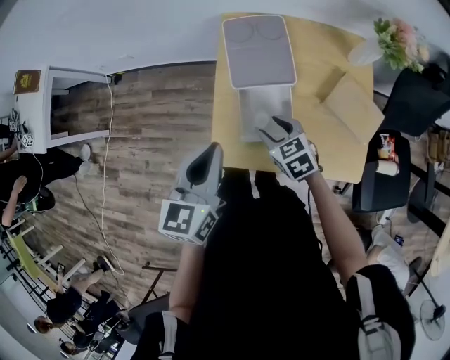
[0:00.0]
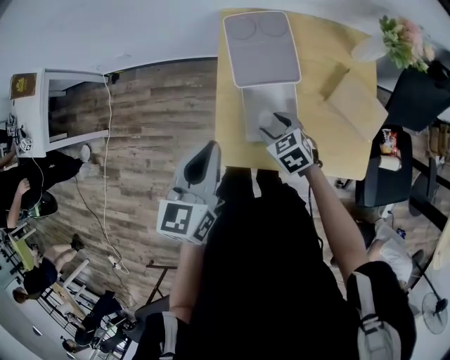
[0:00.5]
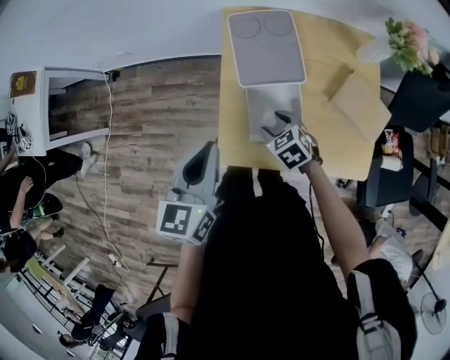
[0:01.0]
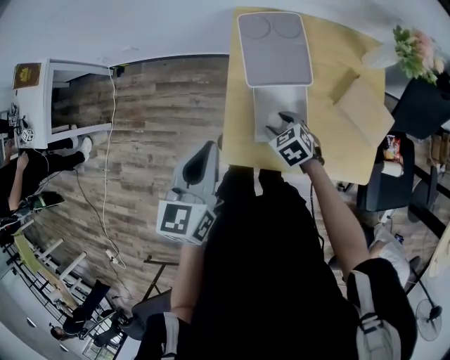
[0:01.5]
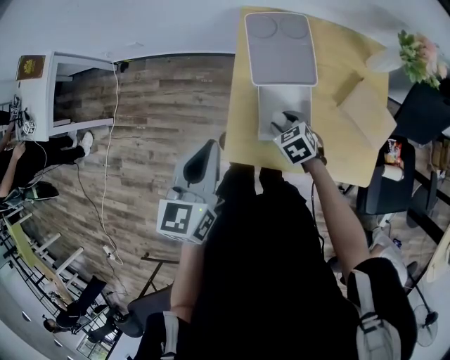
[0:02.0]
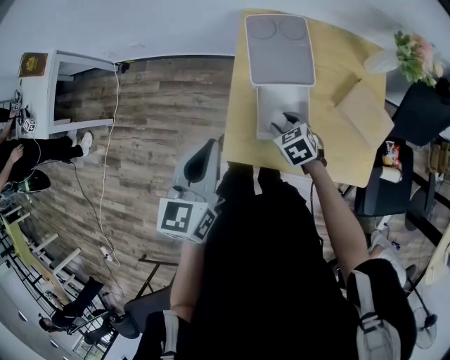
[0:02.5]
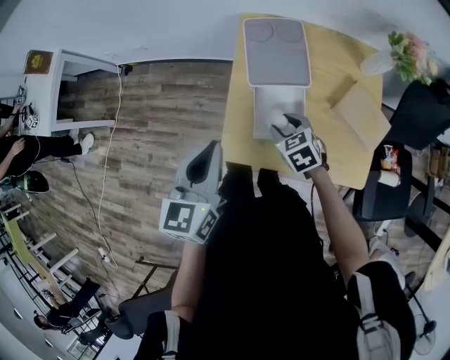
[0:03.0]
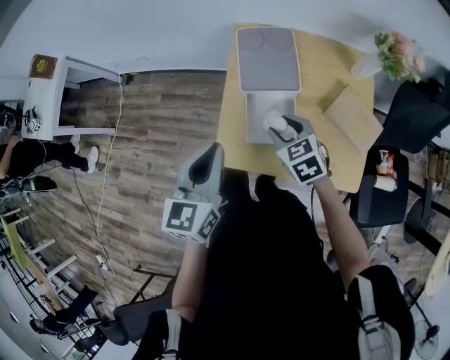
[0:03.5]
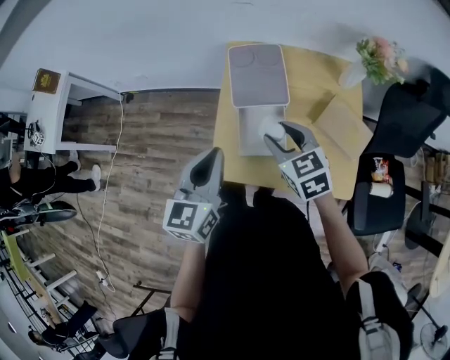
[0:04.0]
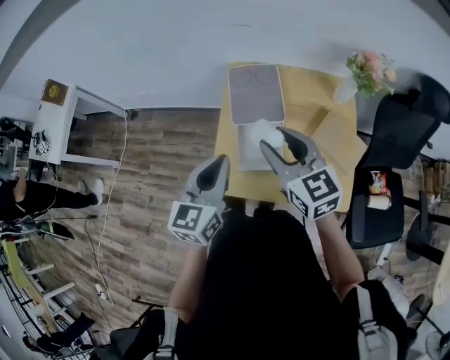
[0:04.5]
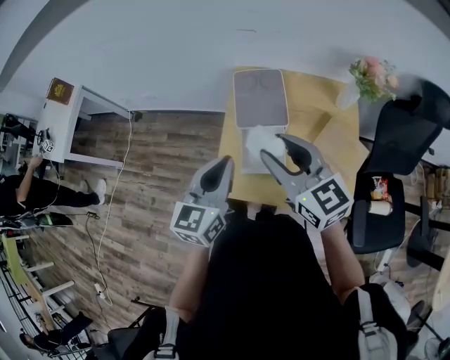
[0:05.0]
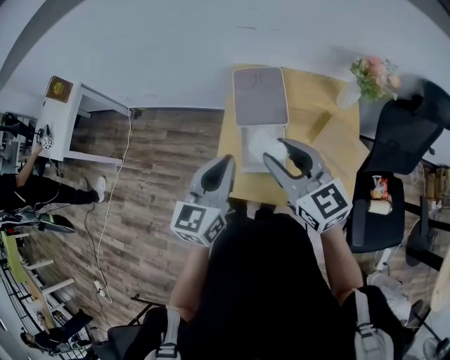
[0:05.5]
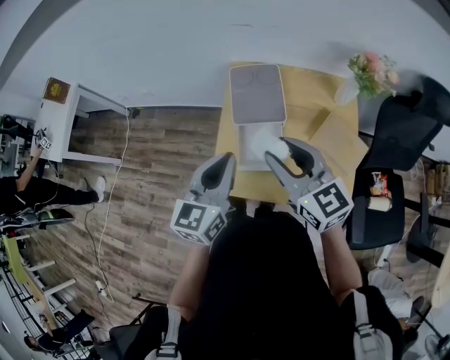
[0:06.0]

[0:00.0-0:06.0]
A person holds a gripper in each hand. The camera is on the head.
0:00.0 to 0:02.0: The right gripper travels downward by about 5 cm; the left gripper is displaced to the left by about 5 cm.
0:02.0 to 0:04.0: The right gripper moves upward, about 20 cm, and rotates about 30 degrees; the left gripper goes approximately 5 cm to the right.
0:04.0 to 0:06.0: The left gripper changes place by some 5 cm; the right gripper heads upward, covering some 10 cm, and changes its angle by approximately 30 degrees.

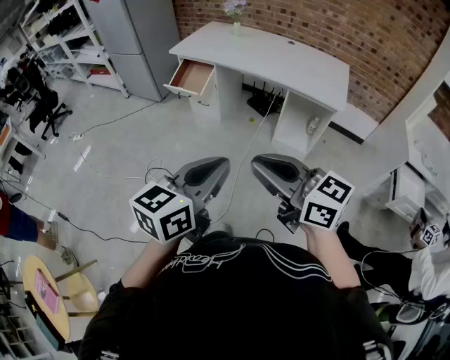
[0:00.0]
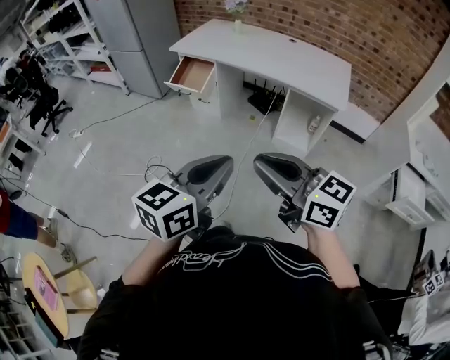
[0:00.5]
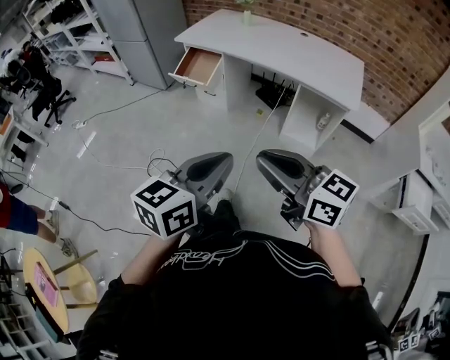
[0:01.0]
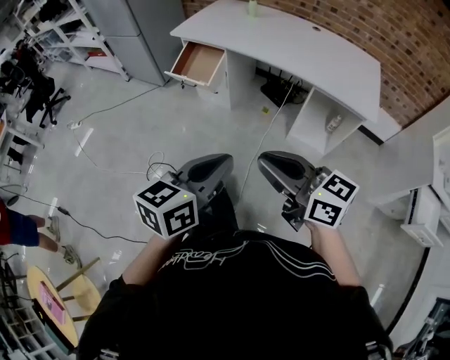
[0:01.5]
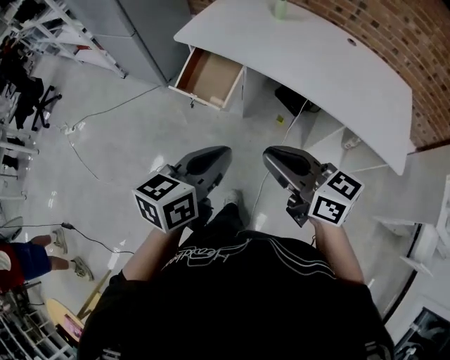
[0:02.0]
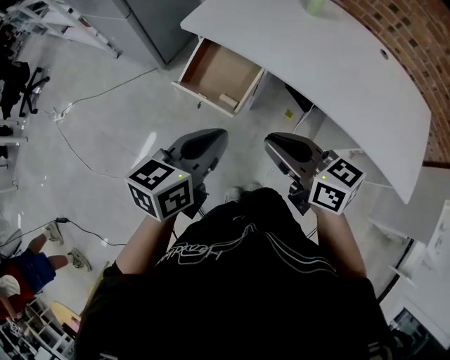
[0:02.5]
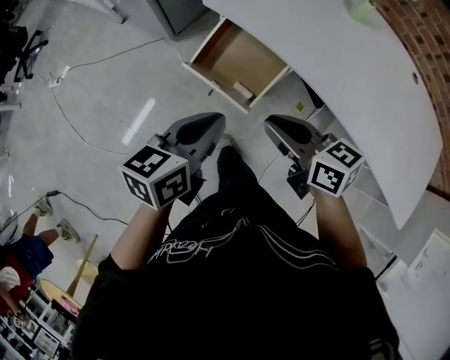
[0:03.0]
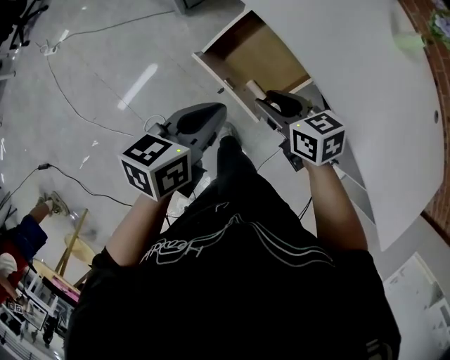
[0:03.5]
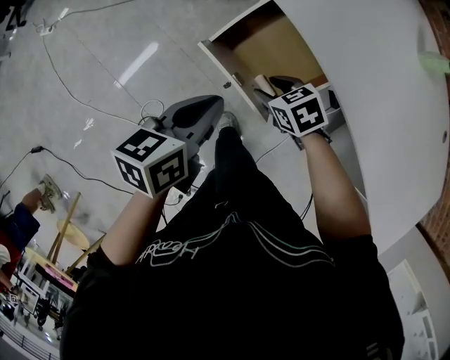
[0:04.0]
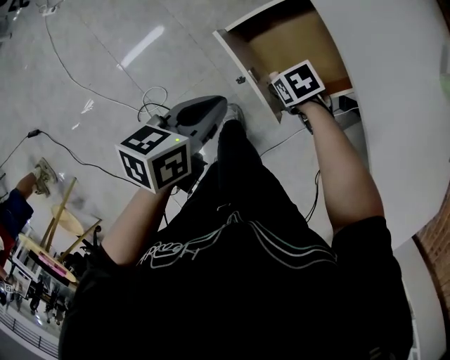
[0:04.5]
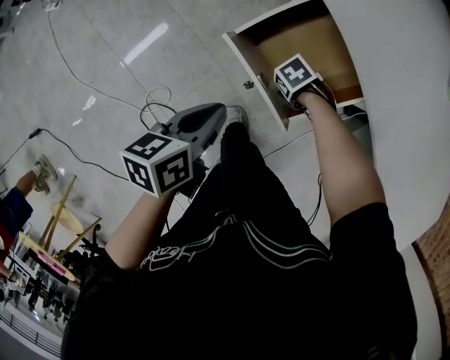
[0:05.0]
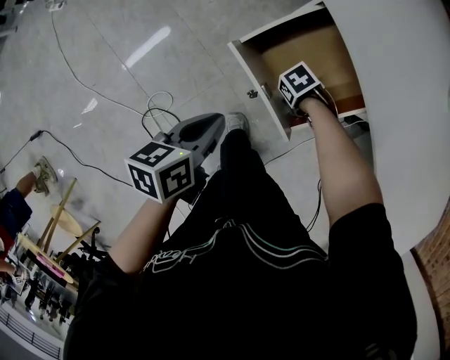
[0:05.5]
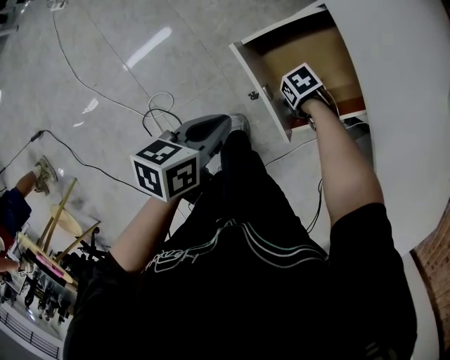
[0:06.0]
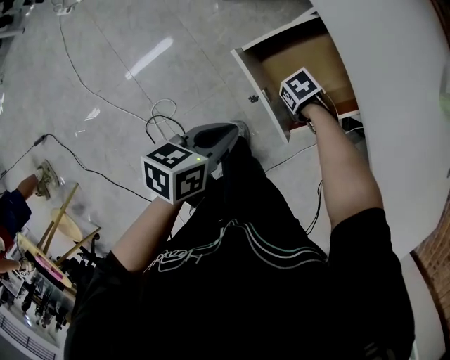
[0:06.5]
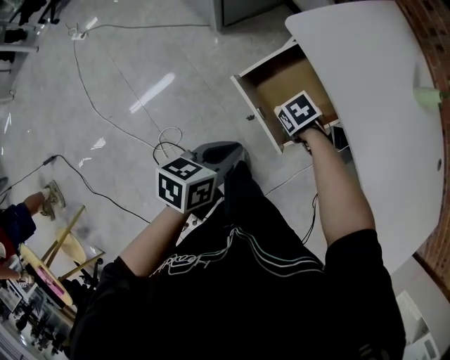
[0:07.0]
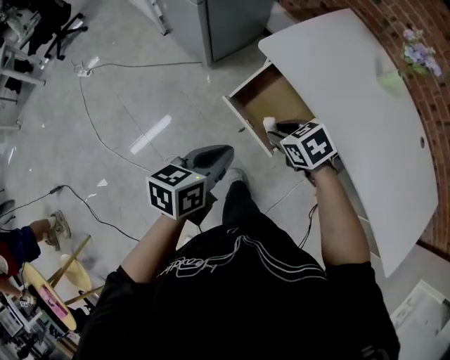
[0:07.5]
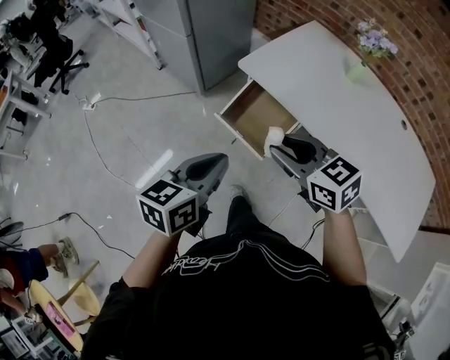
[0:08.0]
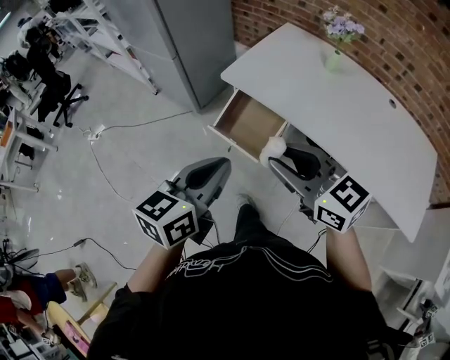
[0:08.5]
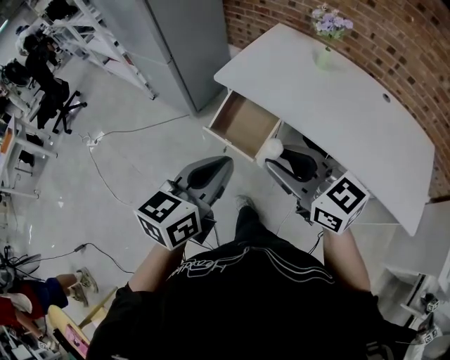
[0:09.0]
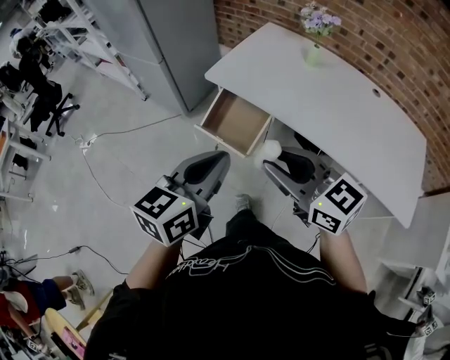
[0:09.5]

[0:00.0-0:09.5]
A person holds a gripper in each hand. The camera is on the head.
0:00.0 to 0:02.0: The pair of grippers is taken forward, some 50 cm.
0:02.0 to 0:04.0: The two grippers travel together, forward, about 50 cm. The right gripper is displaced downward by some 40 cm, tips its fingers downward by roughly 50 degrees, and opens up. Meanwhile the left gripper shifts about 25 cm downward, and changes its angle by about 30 degrees.
0:04.0 to 0:05.5: The right gripper moves downward, approximately 20 cm, and rotates approximately 40 degrees. The left gripper moves downward, approximately 10 cm.
0:05.5 to 0:07.5: The right gripper moves upward, roughly 35 cm, and rotates roughly 40 degrees. Meanwhile the left gripper is displaced upward by some 20 cm, and changes its angle by approximately 20 degrees.
0:07.5 to 0:09.5: The left gripper moves upward, backward and to the right, some 30 cm, and turns by some 30 degrees. Meanwhile the right gripper heads upward and backward, covering approximately 35 cm, and tips its fingers upward by some 50 degrees.

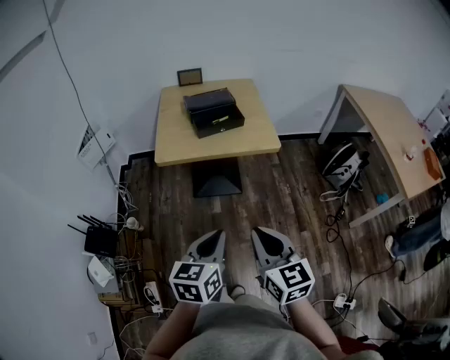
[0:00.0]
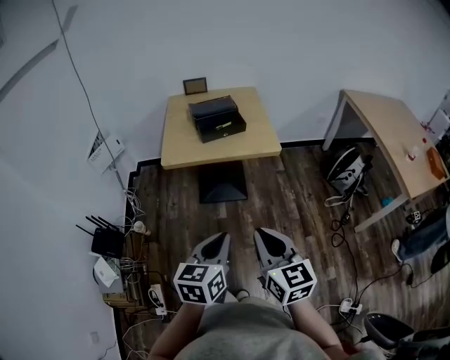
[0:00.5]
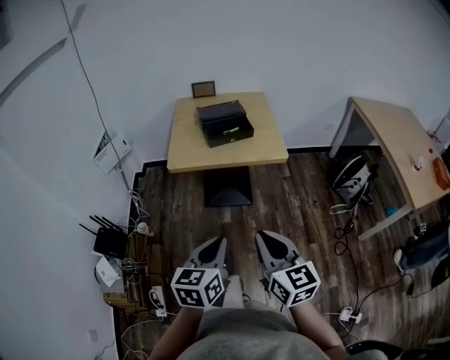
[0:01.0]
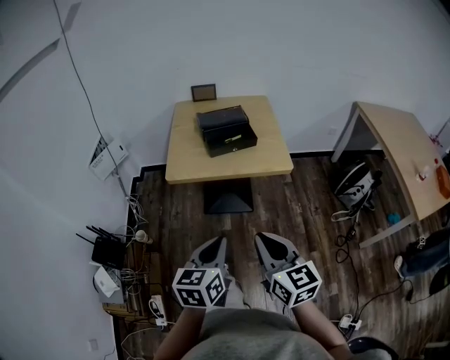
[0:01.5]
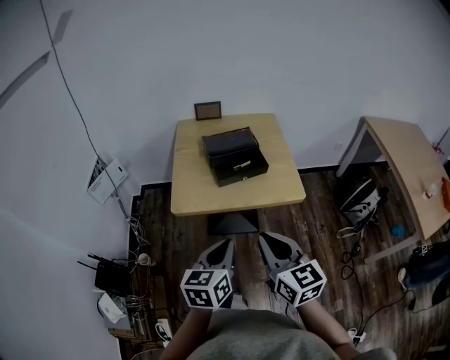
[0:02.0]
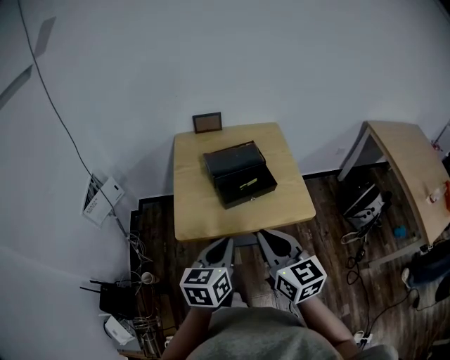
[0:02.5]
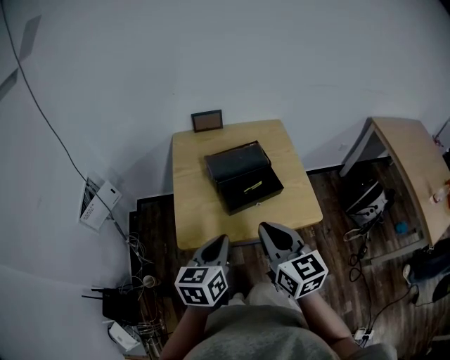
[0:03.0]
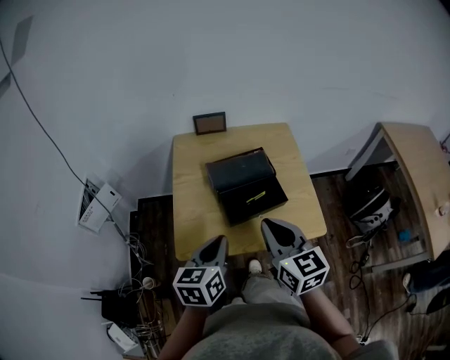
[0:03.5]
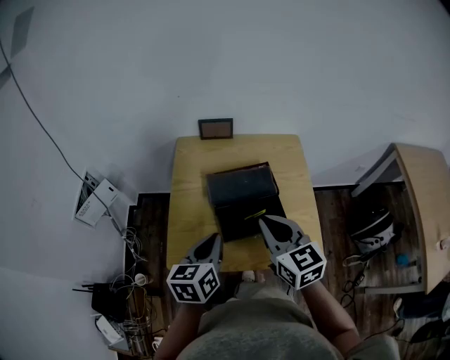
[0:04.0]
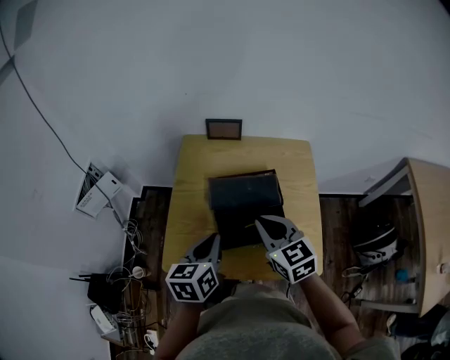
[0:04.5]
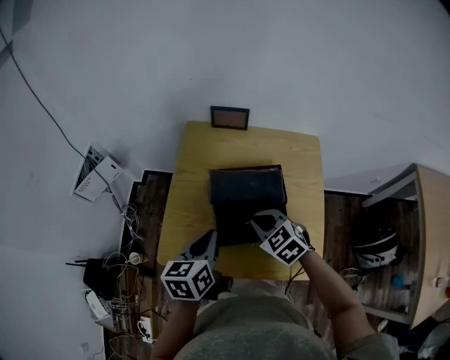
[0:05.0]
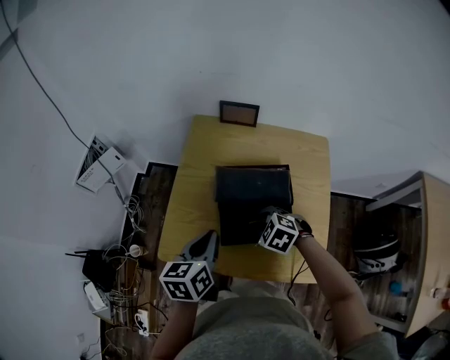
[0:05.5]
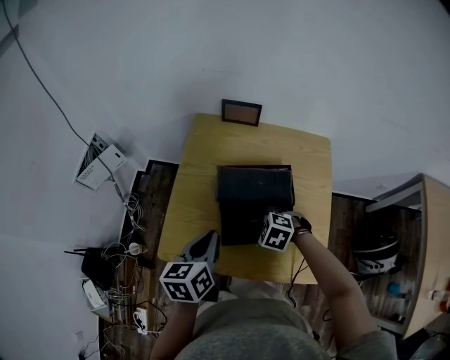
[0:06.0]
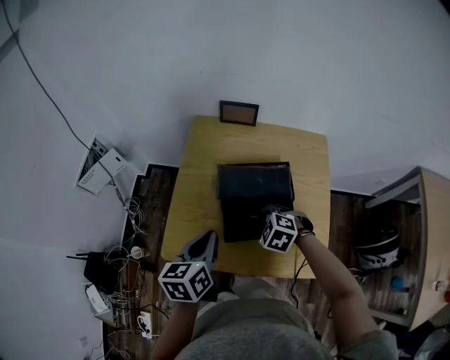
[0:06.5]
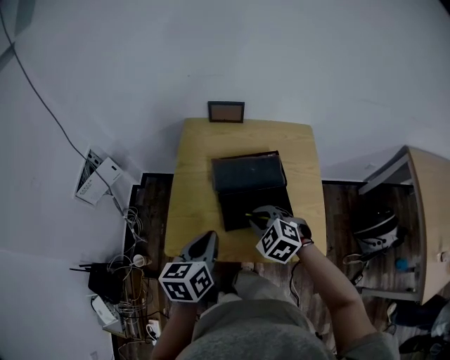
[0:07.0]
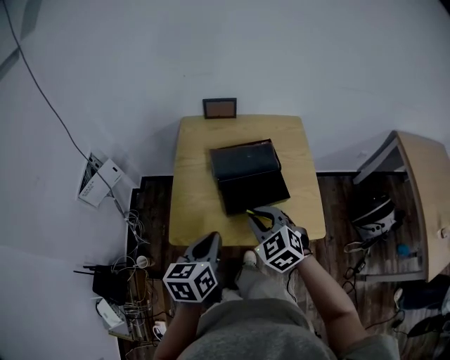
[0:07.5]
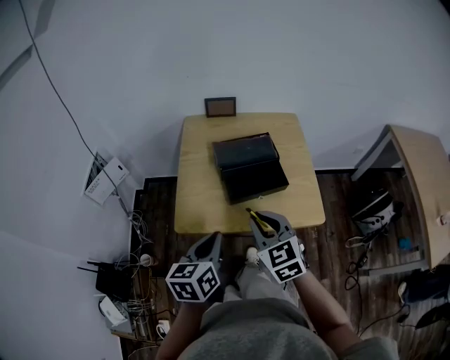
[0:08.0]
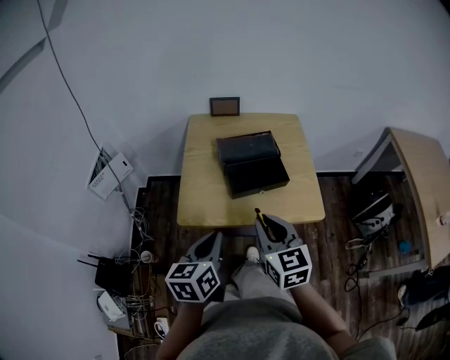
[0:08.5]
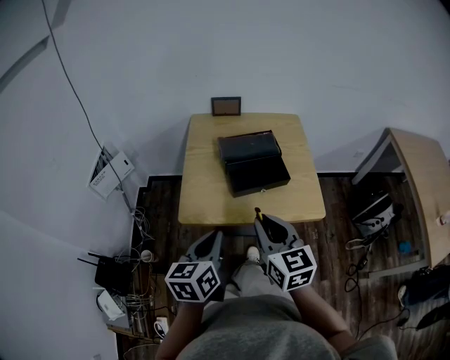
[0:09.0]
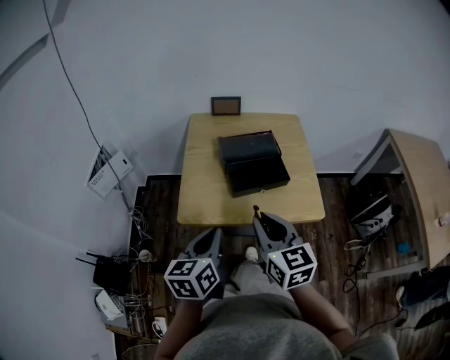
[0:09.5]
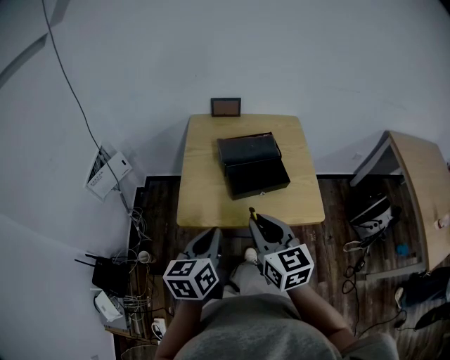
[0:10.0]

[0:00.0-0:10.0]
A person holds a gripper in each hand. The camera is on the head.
0:00.0 to 0:02.0: The grippers both shift forward by about 20 cm.
0:02.0 to 0:04.0: The grippers both shift forward by some 30 cm.
0:04.0 to 0:06.0: The right gripper goes approximately 25 cm downward, and angles its fingers downward, by roughly 50 degrees, while the left gripper moves some 5 cm.
0:06.0 to 0:08.0: The right gripper shifts some 20 cm upward, and tilts its fingers approximately 40 degrees upward; the left gripper changes place by approximately 20 cm.
0:08.0 to 0:10.0: The right gripper shifts by some 5 cm, and rotates about 20 degrees.

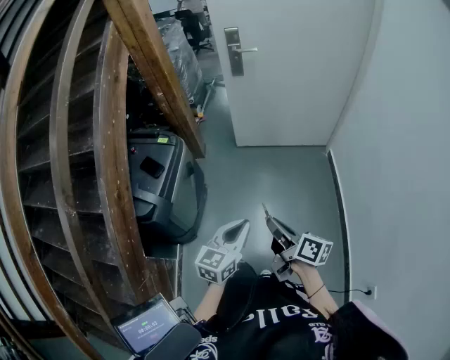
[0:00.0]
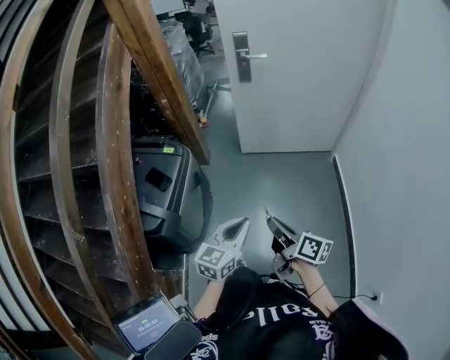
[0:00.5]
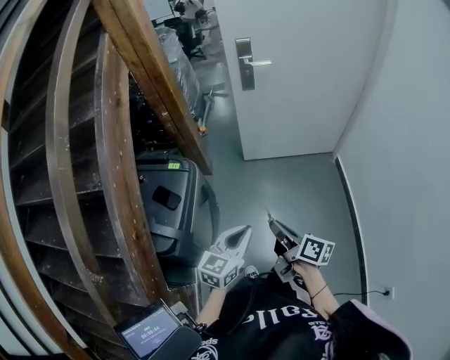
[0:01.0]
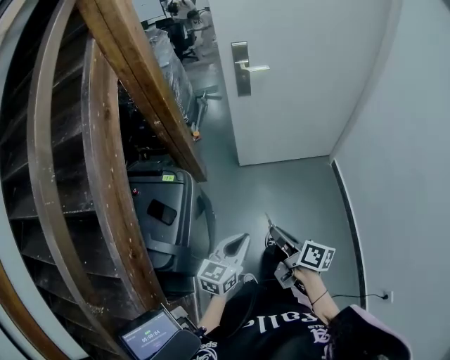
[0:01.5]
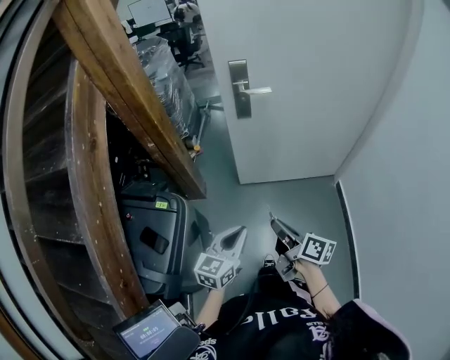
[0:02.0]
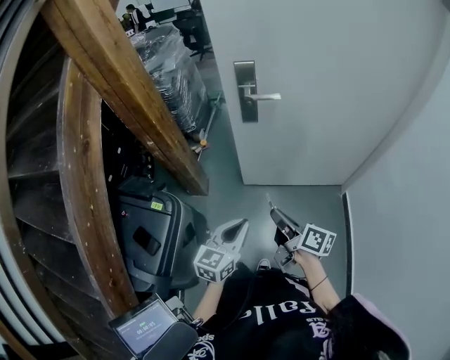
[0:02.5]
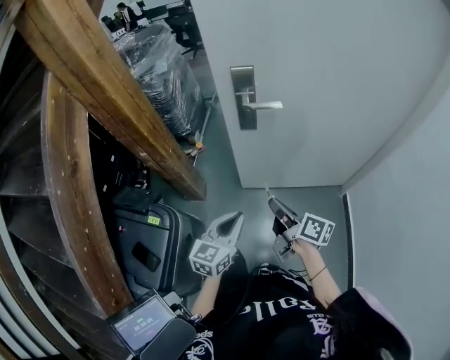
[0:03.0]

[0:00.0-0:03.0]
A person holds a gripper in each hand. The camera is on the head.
0:00.0 to 0:01.5: Both grippers travel together forward and to the left, approximately 20 cm.
0:01.5 to 0:03.0: Both grippers travel together forward, some 40 cm.
